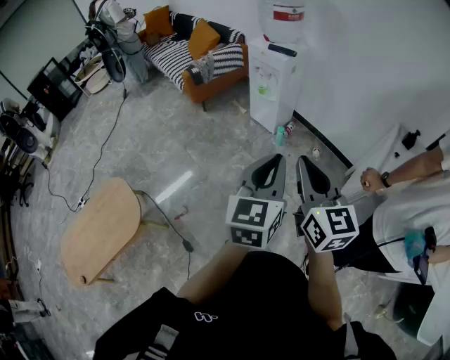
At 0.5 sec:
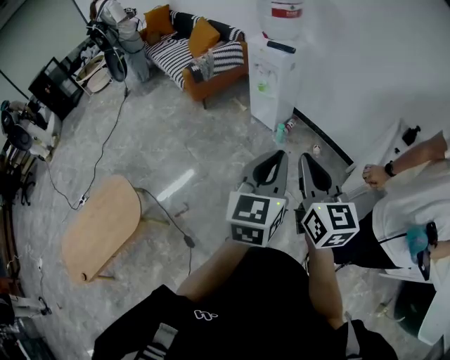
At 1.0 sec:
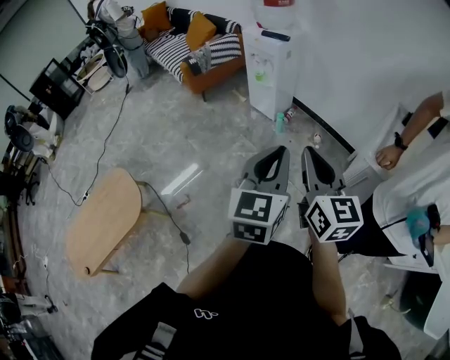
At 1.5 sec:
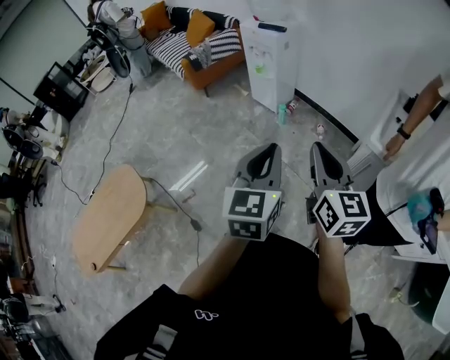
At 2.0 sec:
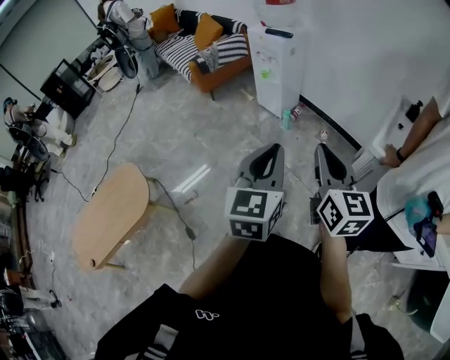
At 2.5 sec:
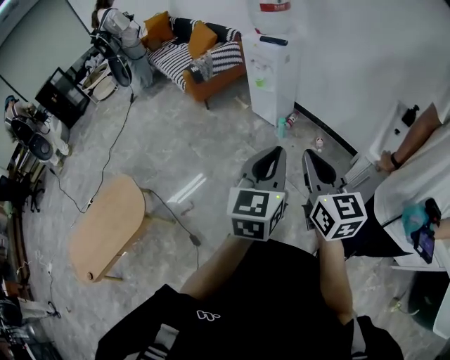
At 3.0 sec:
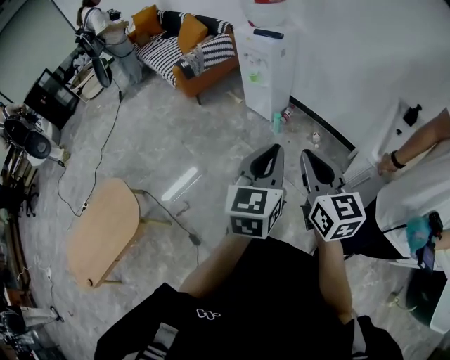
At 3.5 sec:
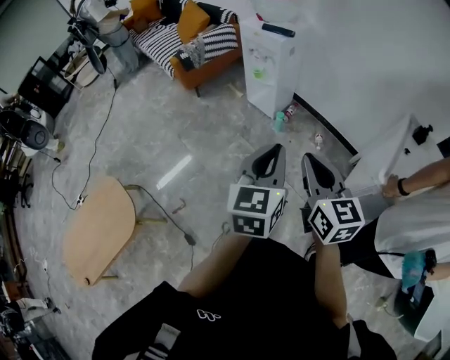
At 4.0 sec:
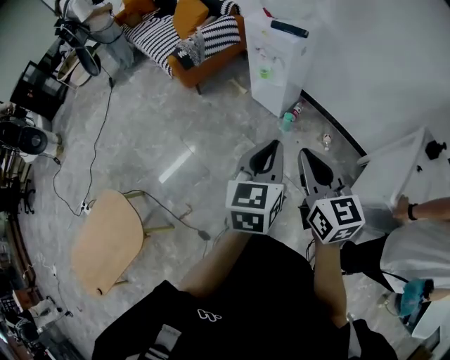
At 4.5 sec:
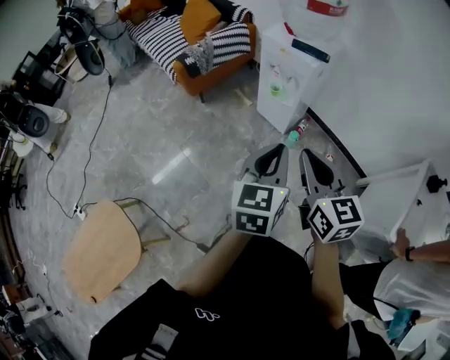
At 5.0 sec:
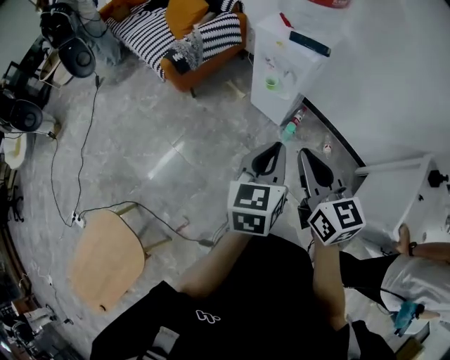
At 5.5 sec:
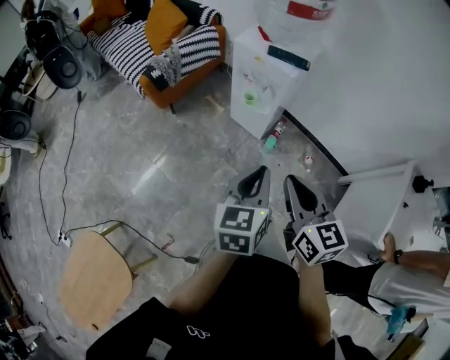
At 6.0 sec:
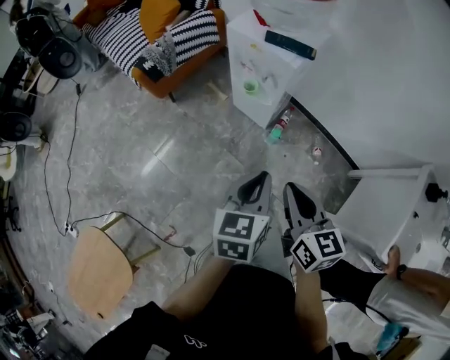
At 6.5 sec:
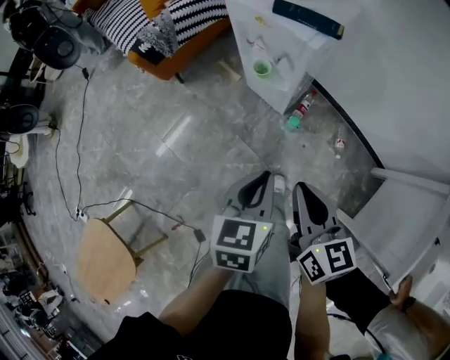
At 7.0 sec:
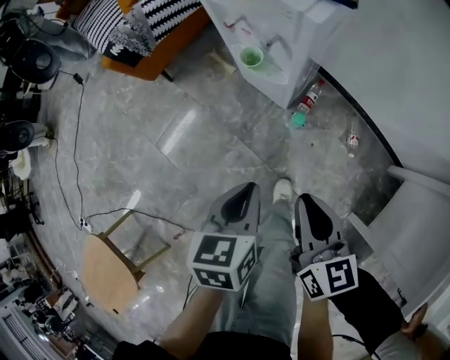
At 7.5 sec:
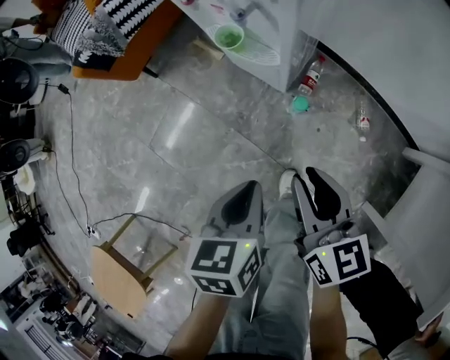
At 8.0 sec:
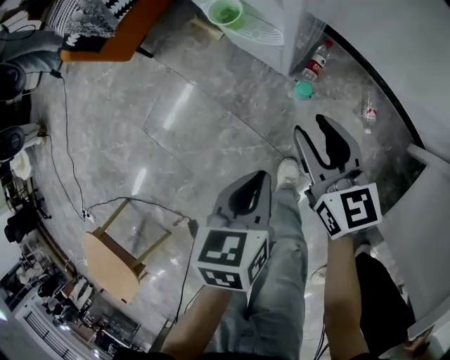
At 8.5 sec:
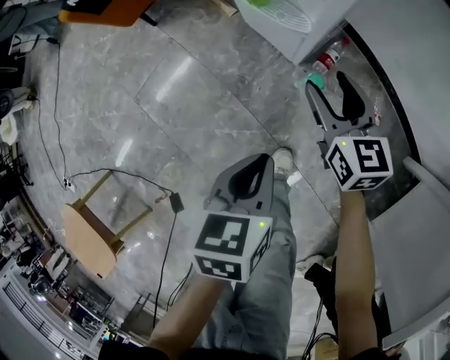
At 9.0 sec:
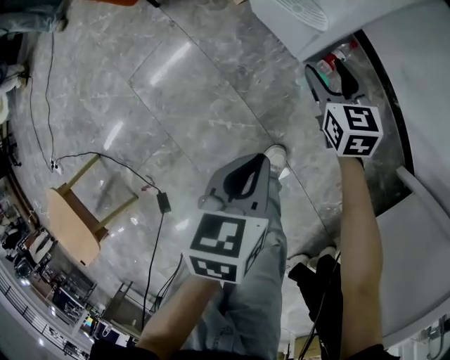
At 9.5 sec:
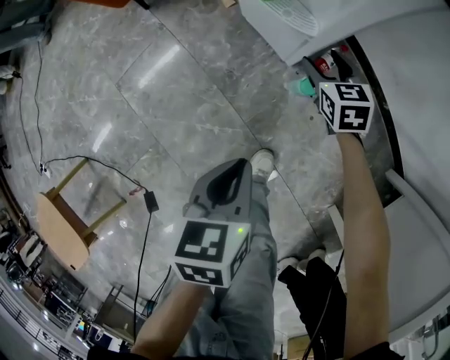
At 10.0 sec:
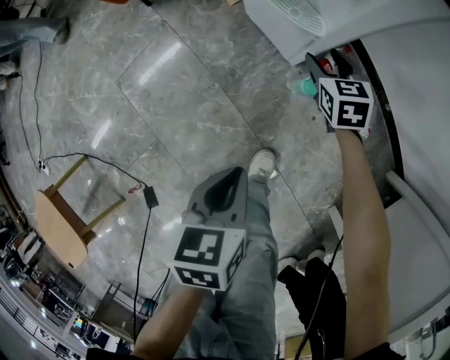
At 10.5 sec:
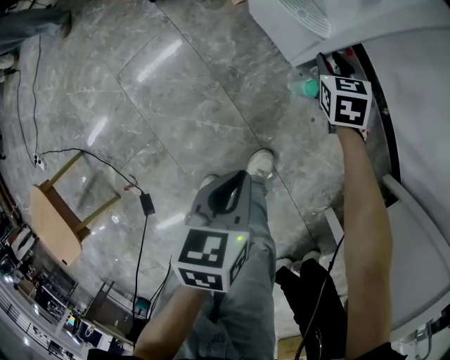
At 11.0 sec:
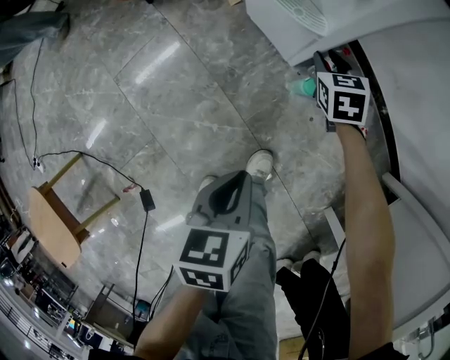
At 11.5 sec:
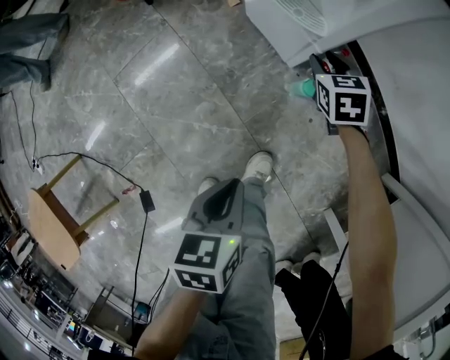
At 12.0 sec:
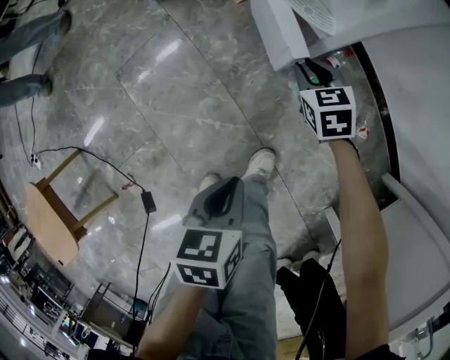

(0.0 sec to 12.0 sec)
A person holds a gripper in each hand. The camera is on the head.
0.0 sec - 2.0 sec: The left gripper goes approximately 10 cm backward; the right gripper goes roughly 10 cm to the right and backward.
2.0 sec - 4.0 sec: The grippers both shift forward by some 30 cm.
4.0 sec - 6.0 sec: The two grippers go approximately 20 cm forward and downward.
6.0 sec - 8.0 sec: The right gripper shifts some 40 cm downward and forward, and opens up, while the left gripper travels downward by roughly 35 cm, and rotates roughly 20 degrees.
8.0 sec - 10.0 sec: The right gripper heads downward and forward, covering some 25 cm, and swivels roughly 30 degrees, while the left gripper heads downward, covering approximately 5 cm.
10.0 sec - 12.0 sec: The left gripper goes some 5 cm backward; the right gripper moves to the left and backward, about 10 cm, and closes its fingers.

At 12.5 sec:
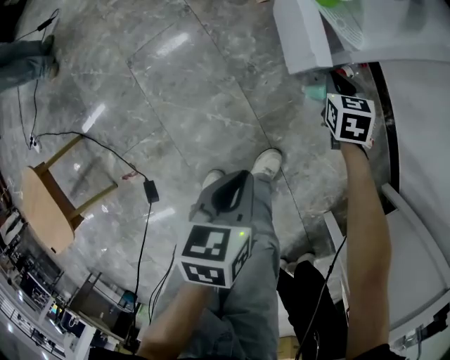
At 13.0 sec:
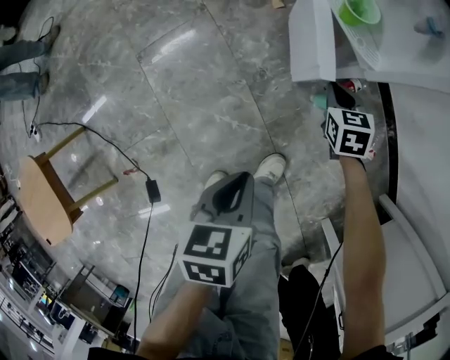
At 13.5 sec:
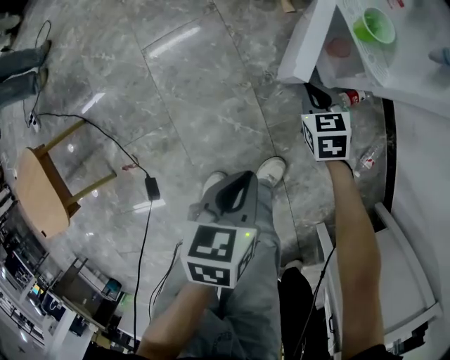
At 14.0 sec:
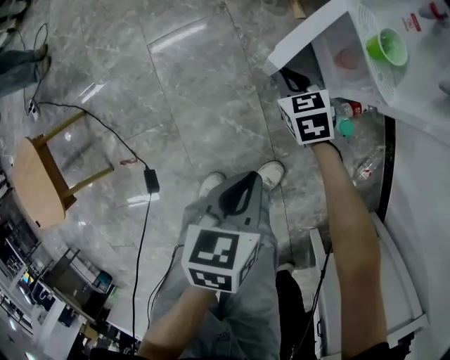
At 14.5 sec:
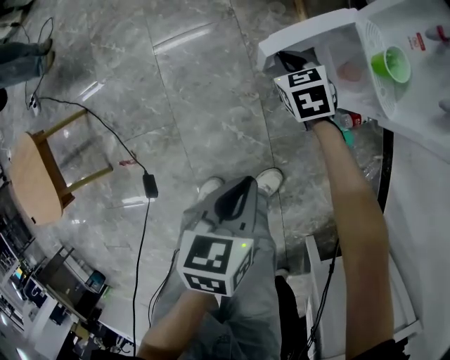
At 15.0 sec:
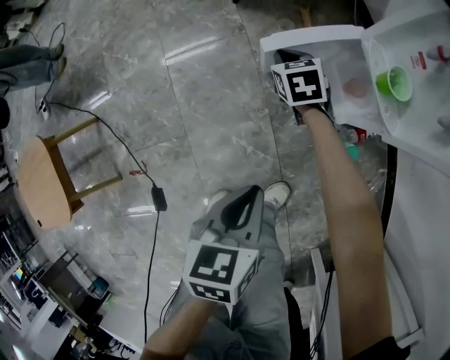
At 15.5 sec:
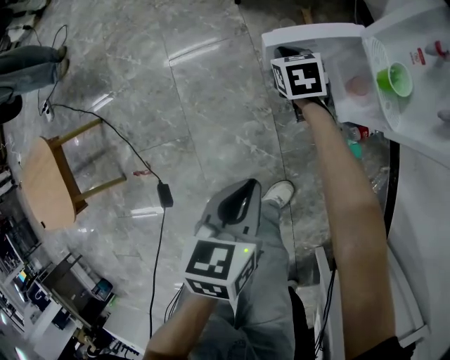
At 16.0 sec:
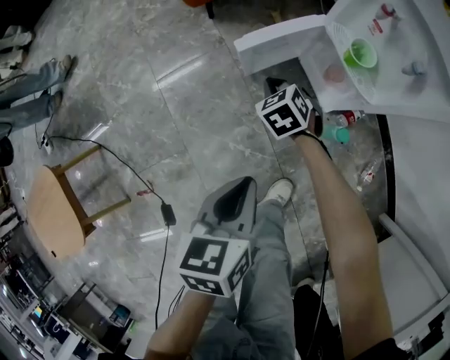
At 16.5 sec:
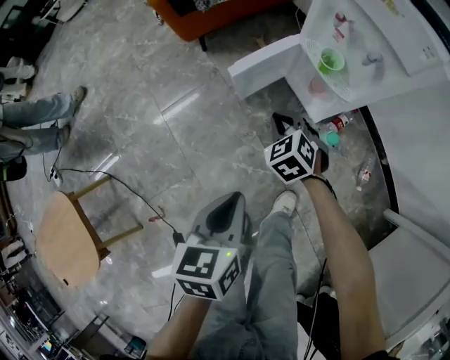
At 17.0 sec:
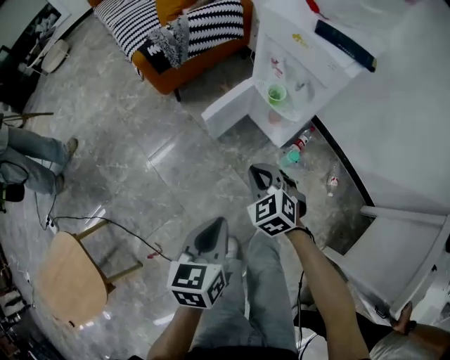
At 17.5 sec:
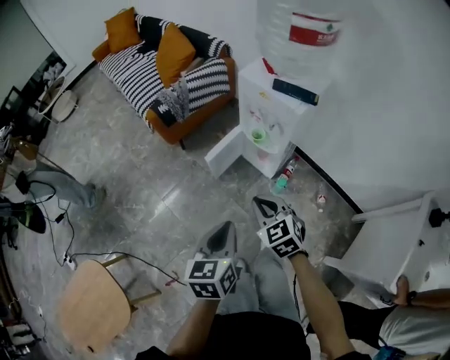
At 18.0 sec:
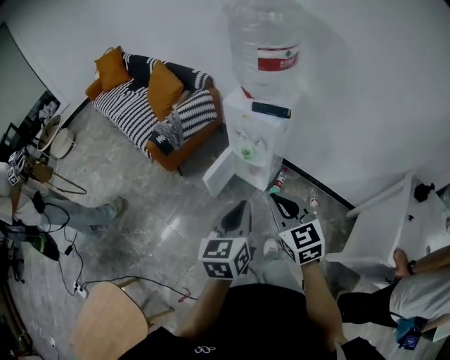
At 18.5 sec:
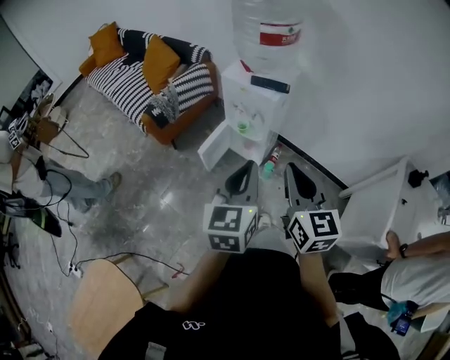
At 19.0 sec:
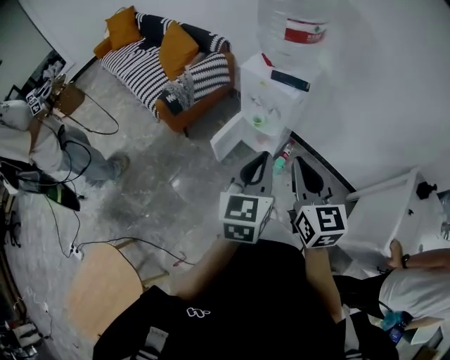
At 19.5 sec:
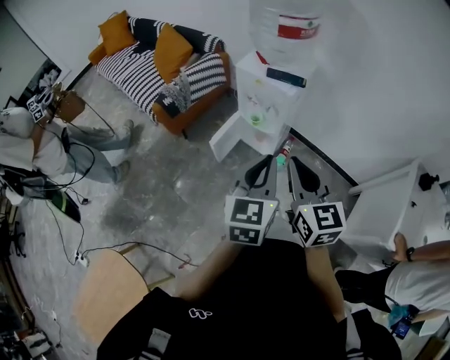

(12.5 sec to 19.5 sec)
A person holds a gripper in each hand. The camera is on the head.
12.5 sec - 14.5 sec: The left gripper ends up about 10 cm from where it was, while the right gripper moves roughly 30 cm, and turns by about 30 degrees.
14.5 sec - 16.0 sec: The left gripper travels upward by about 5 cm.
16.0 sec - 17.5 sec: The right gripper is displaced upward and backward by roughly 50 cm, and changes its angle by roughly 30 degrees. Meanwhile the left gripper is displaced upward by approximately 30 cm, and changes its angle by some 20 degrees.
17.5 sec - 19.5 sec: Both grippers travel together upward, approximately 20 cm. The right gripper swivels roughly 40 degrees. The left gripper turns by about 30 degrees.

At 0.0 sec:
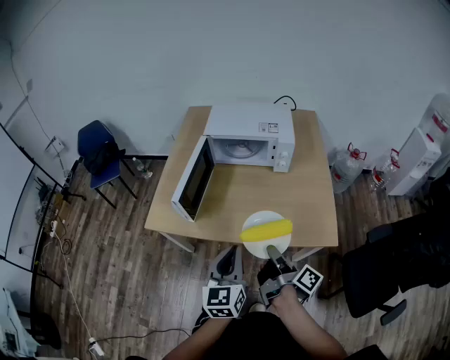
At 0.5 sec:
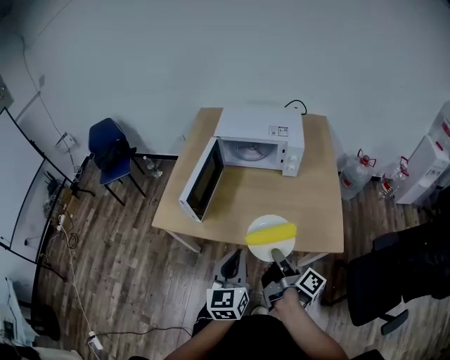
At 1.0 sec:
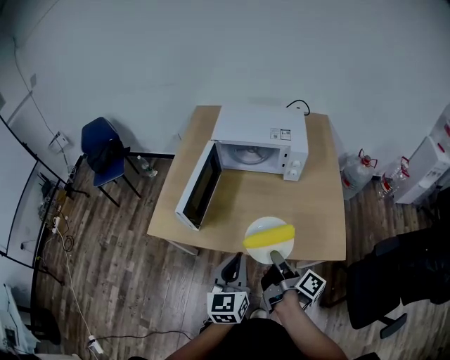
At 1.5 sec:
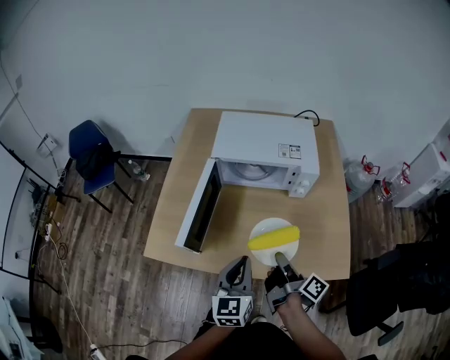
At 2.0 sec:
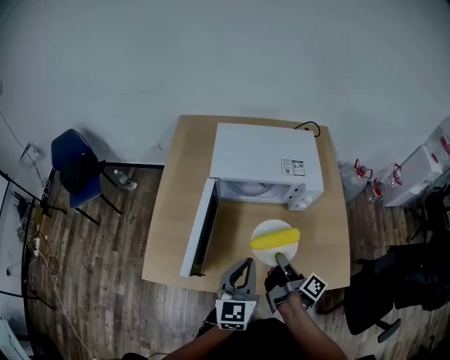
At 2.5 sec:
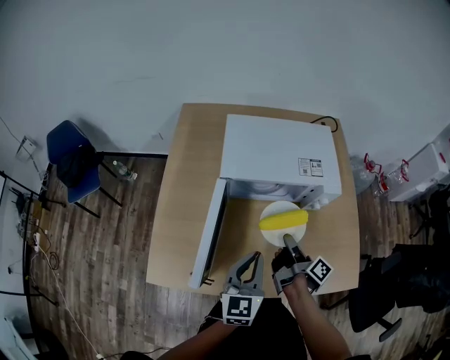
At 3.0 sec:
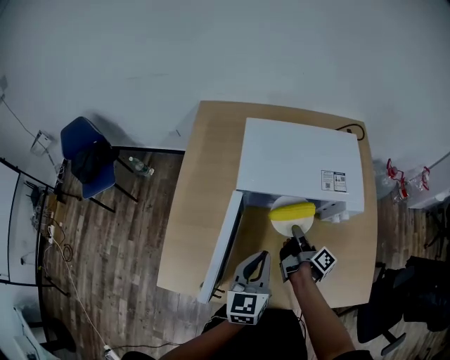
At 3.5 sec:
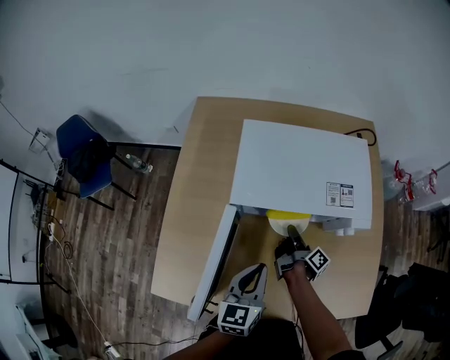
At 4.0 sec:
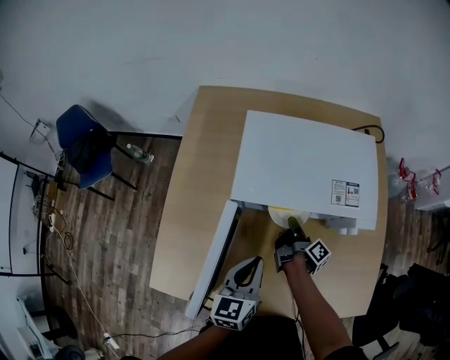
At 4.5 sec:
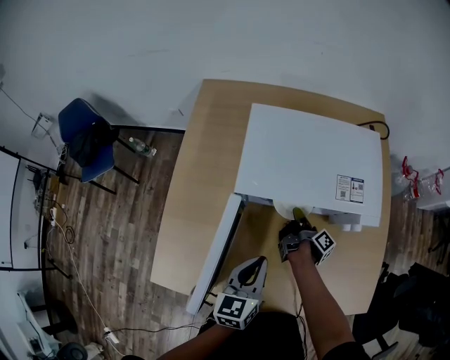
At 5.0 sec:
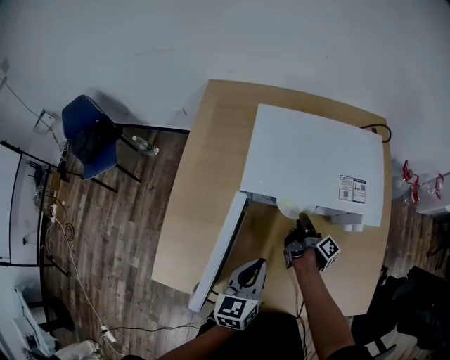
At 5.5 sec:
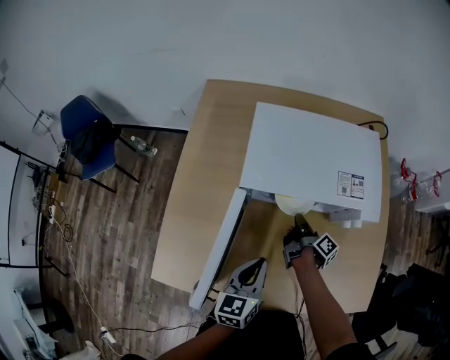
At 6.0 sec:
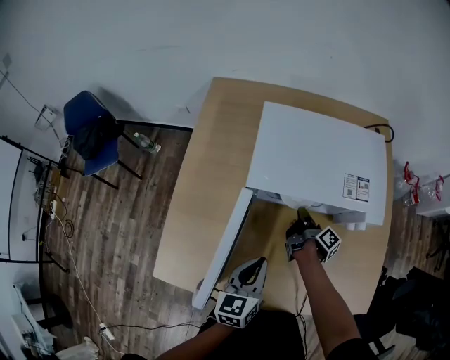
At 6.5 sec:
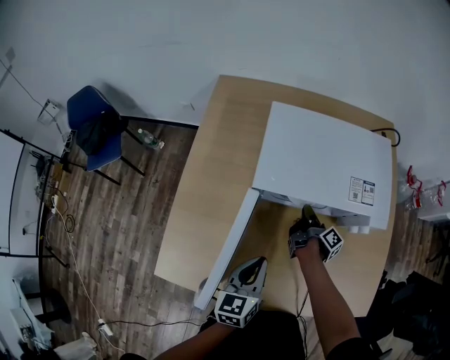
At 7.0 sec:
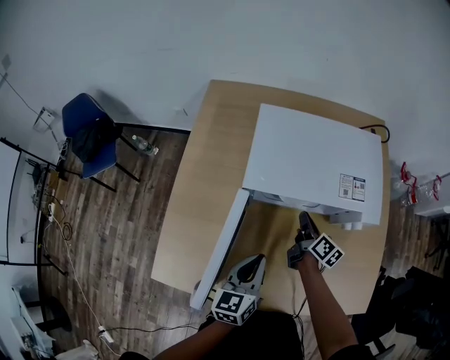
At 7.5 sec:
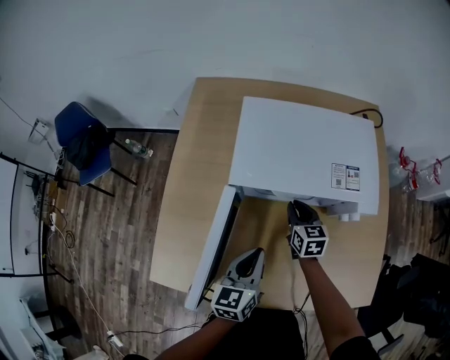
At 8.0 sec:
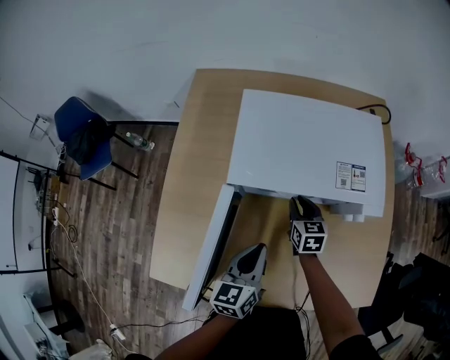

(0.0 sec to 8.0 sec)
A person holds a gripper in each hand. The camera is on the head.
0.0 sec - 2.0 sec: Both grippers move forward, approximately 20 cm.
2.0 sec - 4.0 sec: The left gripper shifts about 15 cm forward and downward. The right gripper goes some 30 cm forward and downward.
4.0 sec - 6.0 sec: The right gripper opens and closes again.
6.0 sec - 8.0 sec: The right gripper twists approximately 80 degrees counterclockwise, seen from behind.
